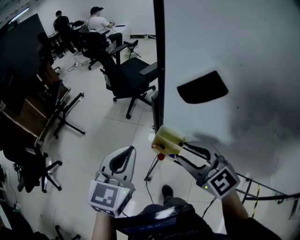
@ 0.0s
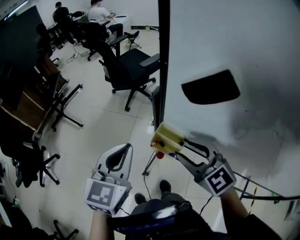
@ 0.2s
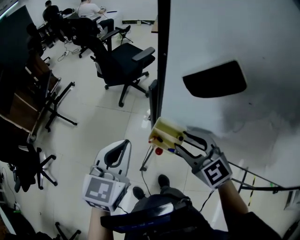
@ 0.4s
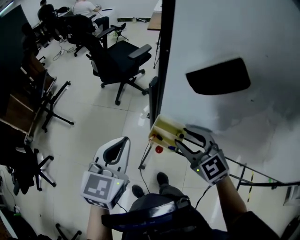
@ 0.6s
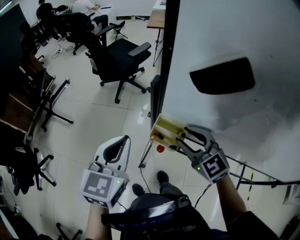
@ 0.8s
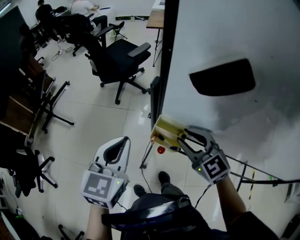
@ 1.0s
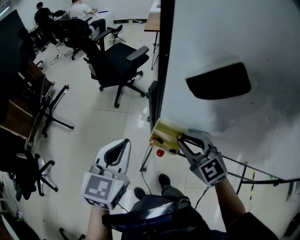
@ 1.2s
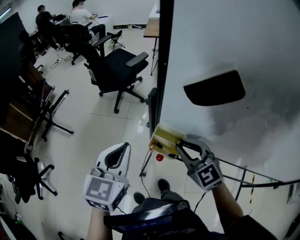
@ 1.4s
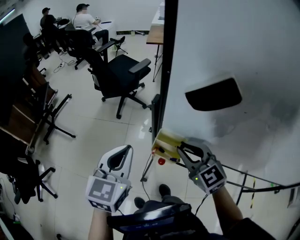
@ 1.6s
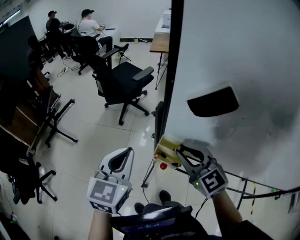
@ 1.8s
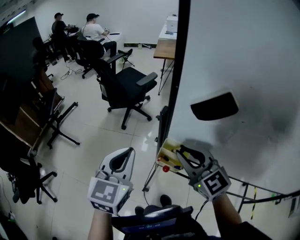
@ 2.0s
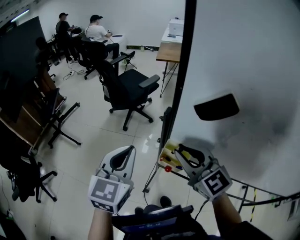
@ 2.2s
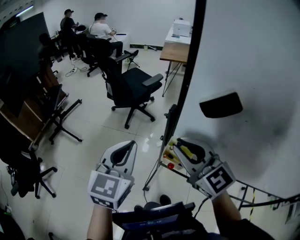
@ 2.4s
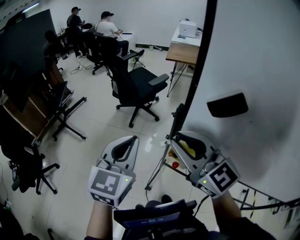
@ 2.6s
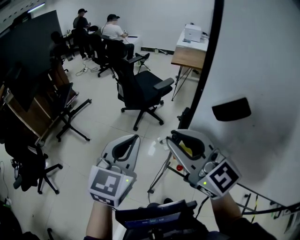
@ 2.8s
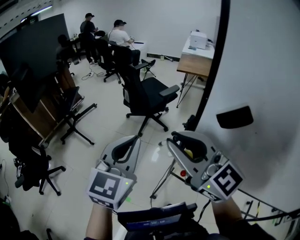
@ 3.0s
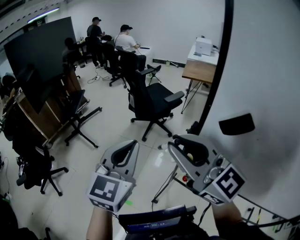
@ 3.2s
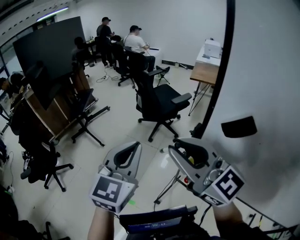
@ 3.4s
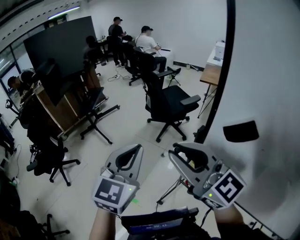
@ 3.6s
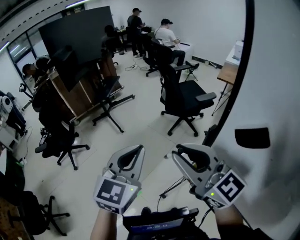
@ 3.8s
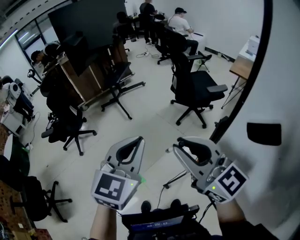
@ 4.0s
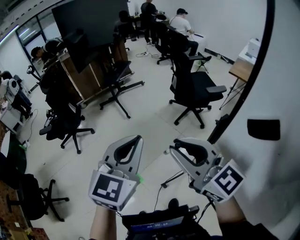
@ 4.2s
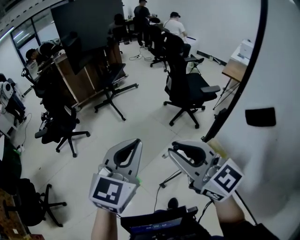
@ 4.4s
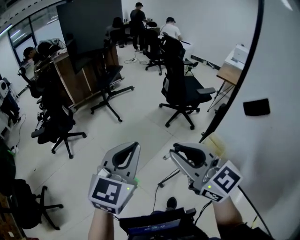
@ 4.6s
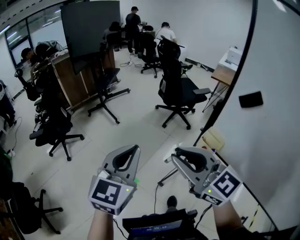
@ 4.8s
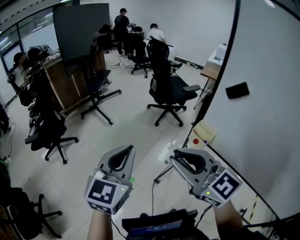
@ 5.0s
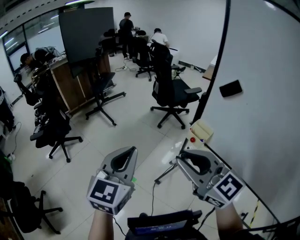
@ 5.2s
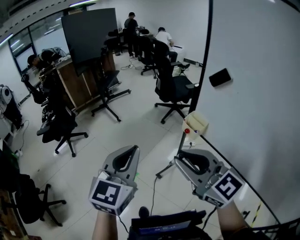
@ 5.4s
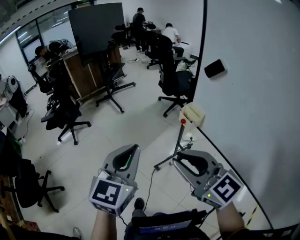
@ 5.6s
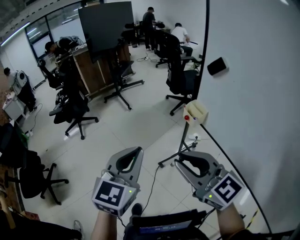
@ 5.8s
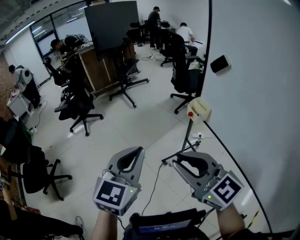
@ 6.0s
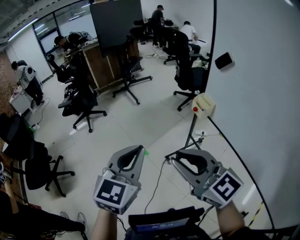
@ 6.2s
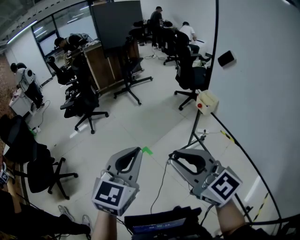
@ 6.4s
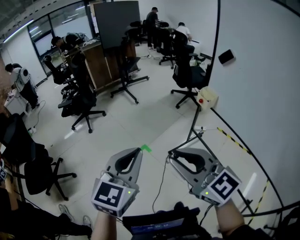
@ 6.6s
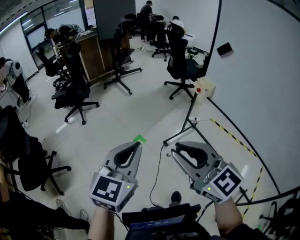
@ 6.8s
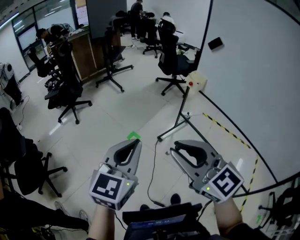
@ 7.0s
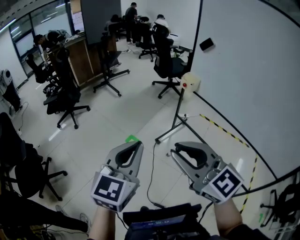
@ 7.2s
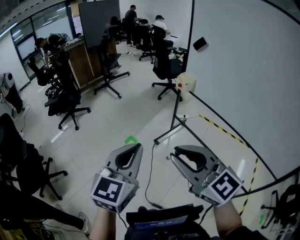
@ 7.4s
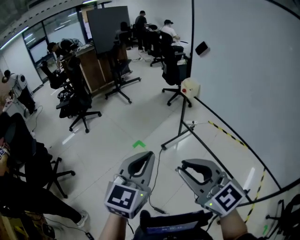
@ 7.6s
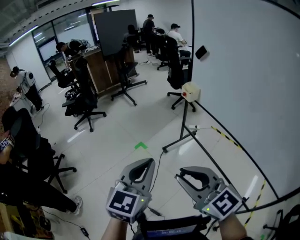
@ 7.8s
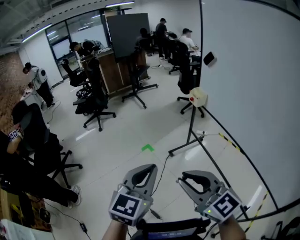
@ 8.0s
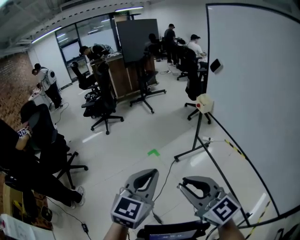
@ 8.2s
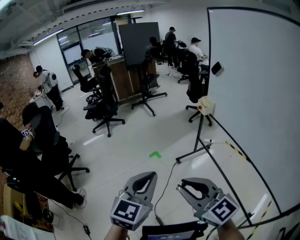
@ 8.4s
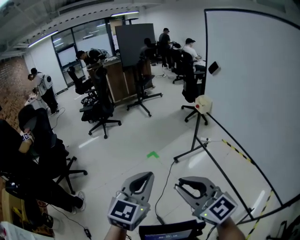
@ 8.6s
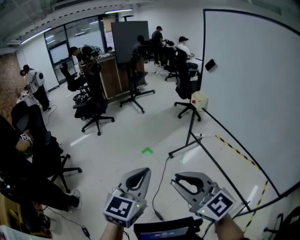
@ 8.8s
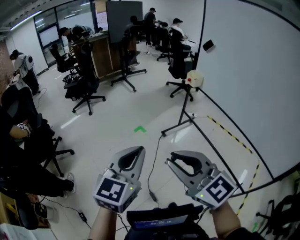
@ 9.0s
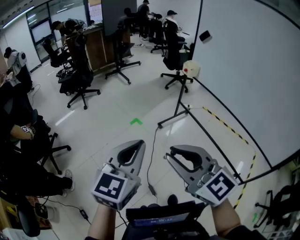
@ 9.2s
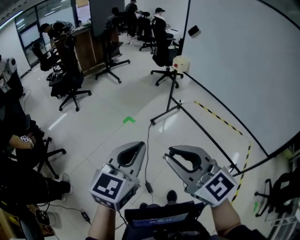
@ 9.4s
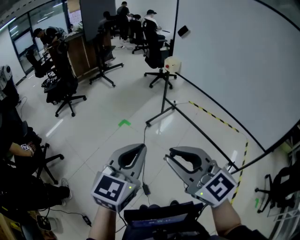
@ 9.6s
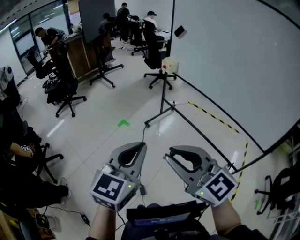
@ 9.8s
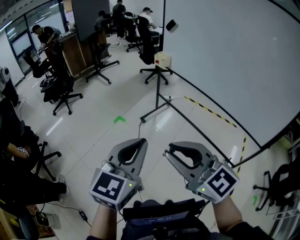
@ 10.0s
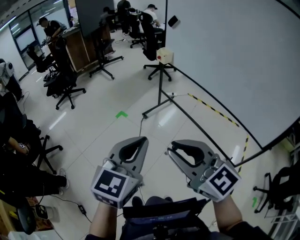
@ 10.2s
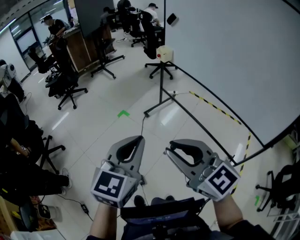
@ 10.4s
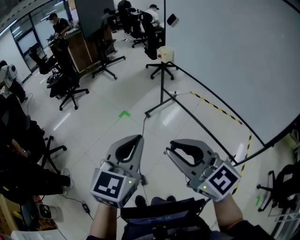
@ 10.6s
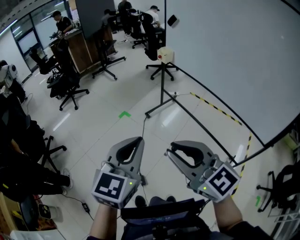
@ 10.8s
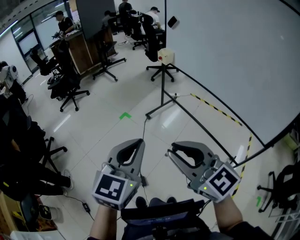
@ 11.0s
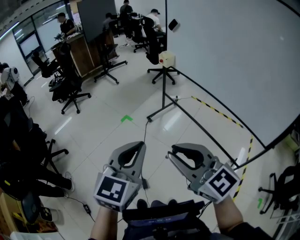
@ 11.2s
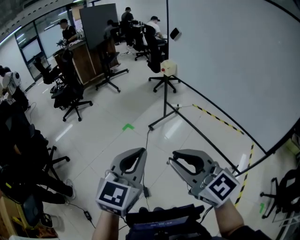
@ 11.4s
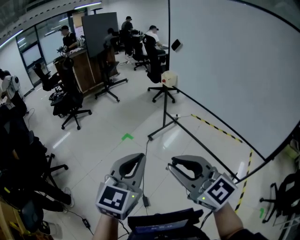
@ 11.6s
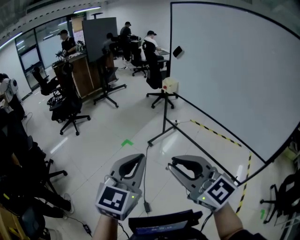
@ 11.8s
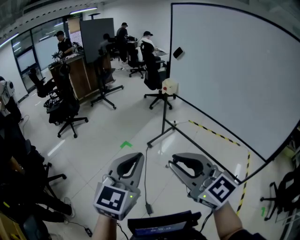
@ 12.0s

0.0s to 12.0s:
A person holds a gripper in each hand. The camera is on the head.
0.0s to 1.6s: The right gripper shifts approximately 10 cm downward and forward, and closes. The left gripper travels forward by approximately 5 cm.
1.6s to 3.0s: The left gripper shifts about 15 cm upward and to the left, while the right gripper heads upward and to the left, covering approximately 30 cm, and rotates approximately 30 degrees.
3.0s to 4.4s: The left gripper shifts by roughly 15 cm, and swivels approximately 20 degrees. Meanwhile the right gripper shifts by some 10 cm, and turns by some 30 degrees.
4.4s to 6.0s: The two grippers go roughly 40 cm backward.
6.0s to 7.6s: The right gripper travels backward and to the left by about 30 cm; the left gripper travels backward by about 25 cm.
7.6s to 9.0s: Both grippers move backward and to the left, approximately 15 cm.
9.0s to 10.4s: The two grippers go roughly 15 cm to the right and backward.
10.4s to 12.0s: Both grippers move to the left and forward, roughly 10 cm.

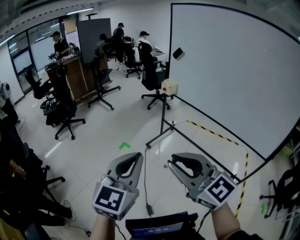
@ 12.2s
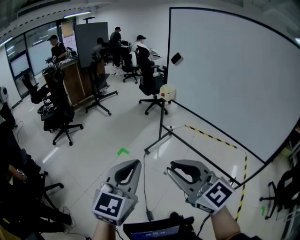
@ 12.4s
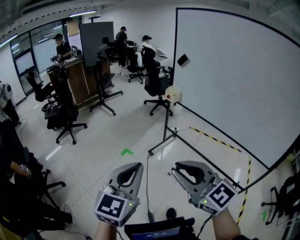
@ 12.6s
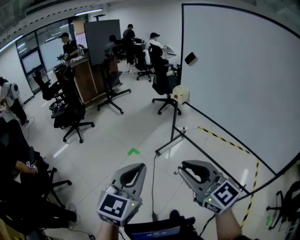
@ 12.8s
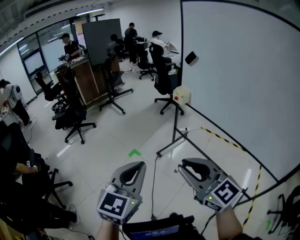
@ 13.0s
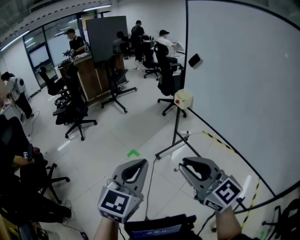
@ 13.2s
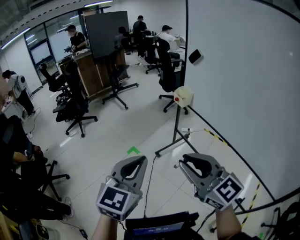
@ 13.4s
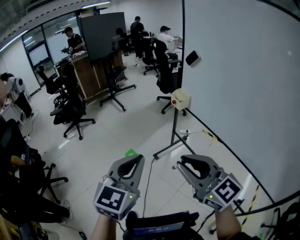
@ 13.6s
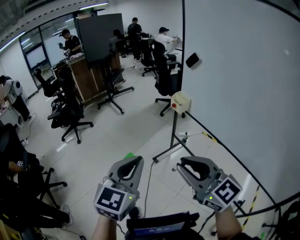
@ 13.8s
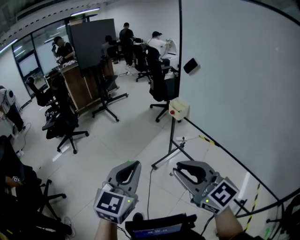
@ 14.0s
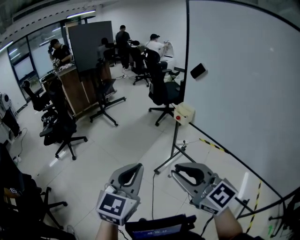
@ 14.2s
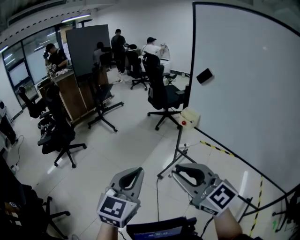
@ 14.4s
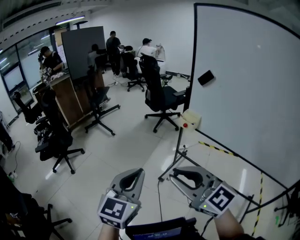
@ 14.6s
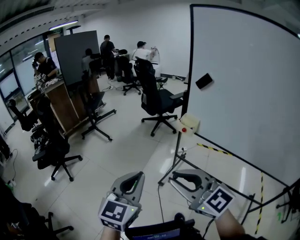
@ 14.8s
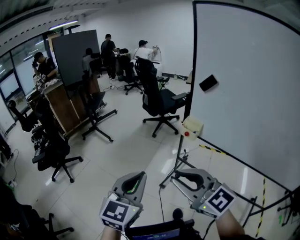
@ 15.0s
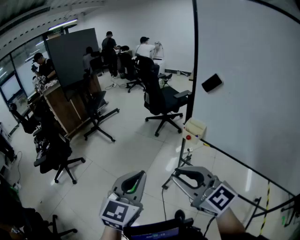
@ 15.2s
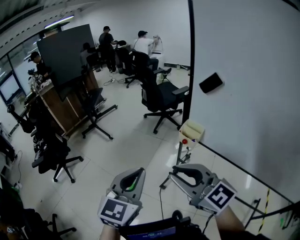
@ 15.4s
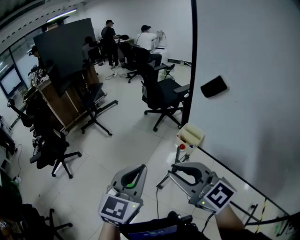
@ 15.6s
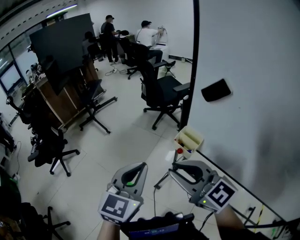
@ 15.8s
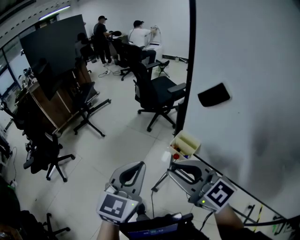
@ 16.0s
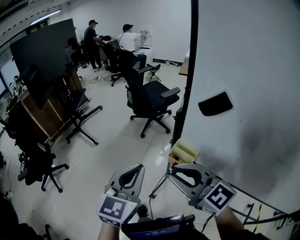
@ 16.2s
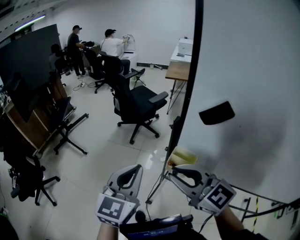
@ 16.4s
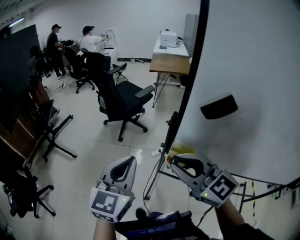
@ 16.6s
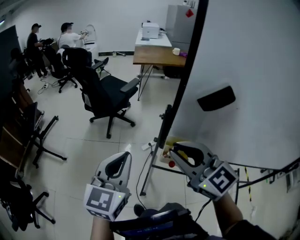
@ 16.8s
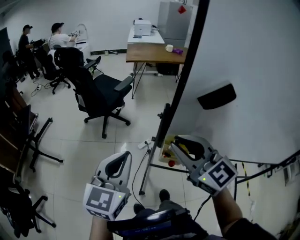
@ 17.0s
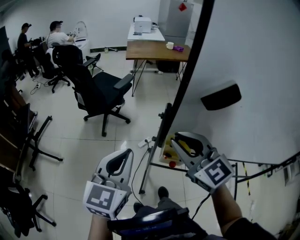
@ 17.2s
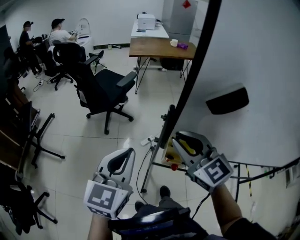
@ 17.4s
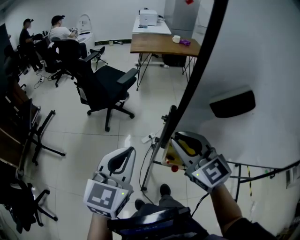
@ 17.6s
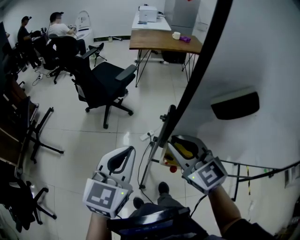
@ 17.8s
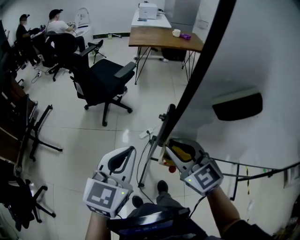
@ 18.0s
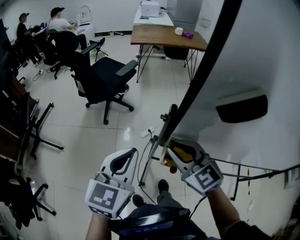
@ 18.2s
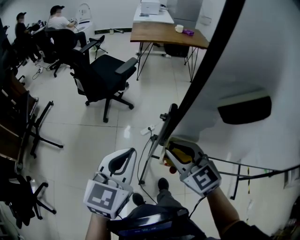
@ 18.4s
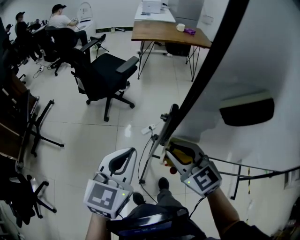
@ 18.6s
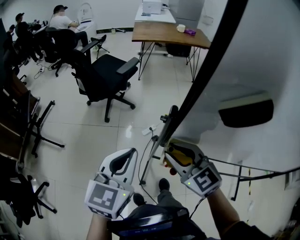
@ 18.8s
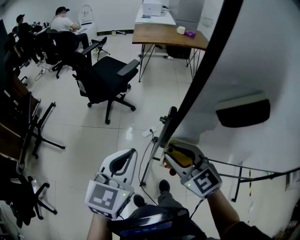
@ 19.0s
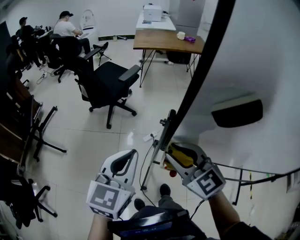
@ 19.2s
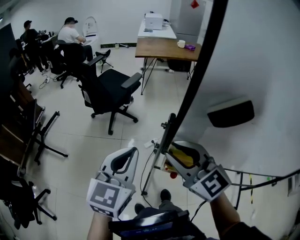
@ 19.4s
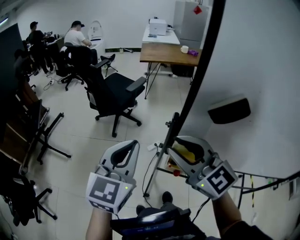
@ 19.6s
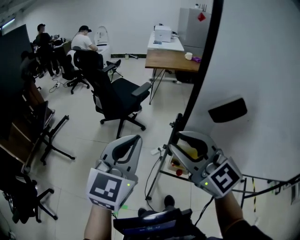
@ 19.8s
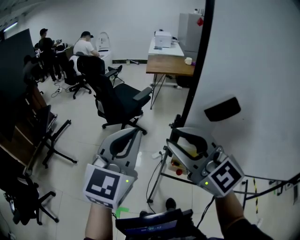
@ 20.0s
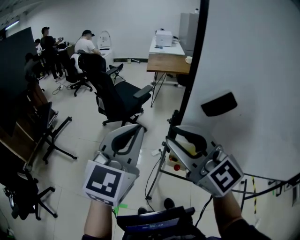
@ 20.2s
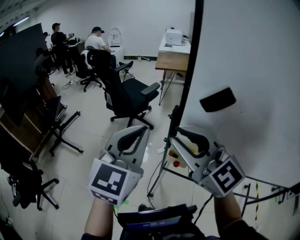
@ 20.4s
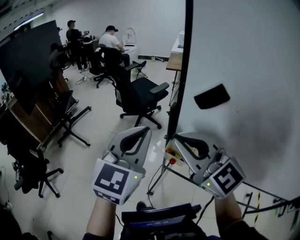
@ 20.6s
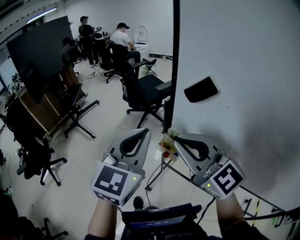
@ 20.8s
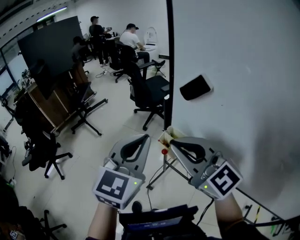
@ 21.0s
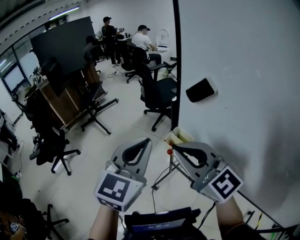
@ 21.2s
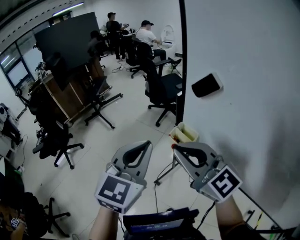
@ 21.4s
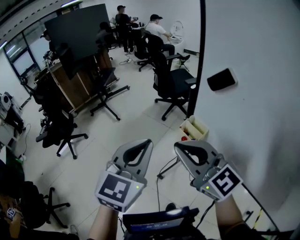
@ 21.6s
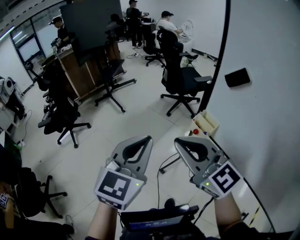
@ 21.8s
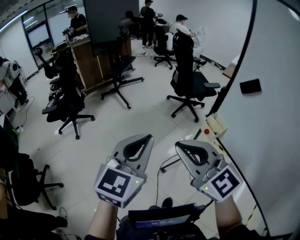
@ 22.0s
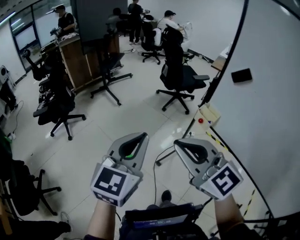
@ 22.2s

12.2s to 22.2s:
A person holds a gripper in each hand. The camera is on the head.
12.2s to 13.6s: The two grippers go roughly 25 cm forward and to the right.
13.6s to 15.0s: The two grippers go about 30 cm forward and to the left.
15.0s to 16.4s: The grippers both shift forward and to the right by roughly 35 cm.
16.4s to 18.0s: Both grippers travel together forward and downward, some 15 cm. The right gripper rotates roughly 30 degrees.
18.0s to 19.4s: The right gripper goes approximately 5 cm upward.
19.4s to 20.8s: The right gripper heads backward and upward, covering some 20 cm, changes its angle by about 30 degrees, and closes. The left gripper shifts approximately 20 cm backward, upward and to the right, and turns by approximately 20 degrees.
20.8s to 22.2s: Both grippers travel together to the left and backward, approximately 30 cm. The left gripper swivels roughly 20 degrees.

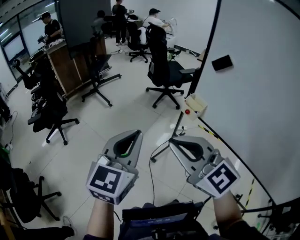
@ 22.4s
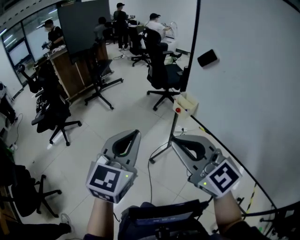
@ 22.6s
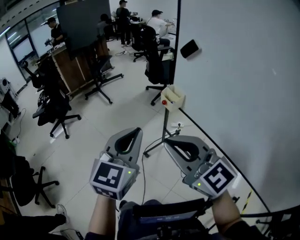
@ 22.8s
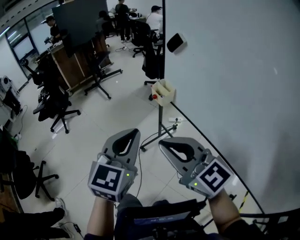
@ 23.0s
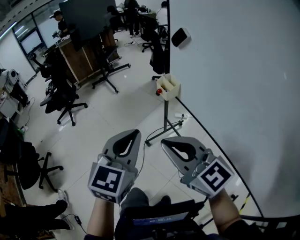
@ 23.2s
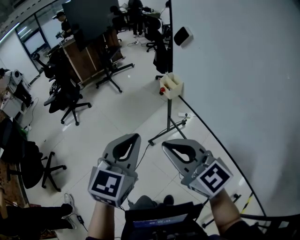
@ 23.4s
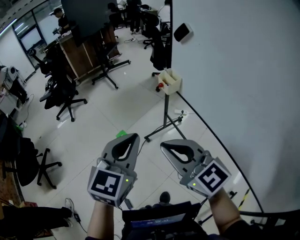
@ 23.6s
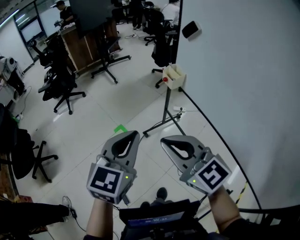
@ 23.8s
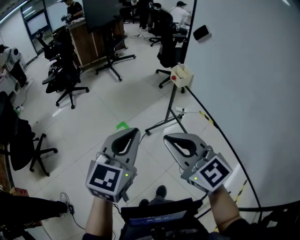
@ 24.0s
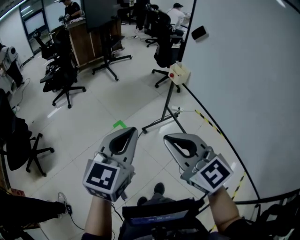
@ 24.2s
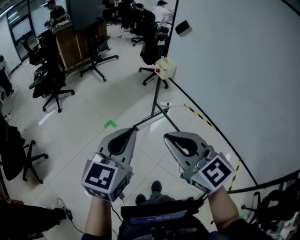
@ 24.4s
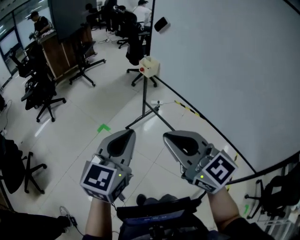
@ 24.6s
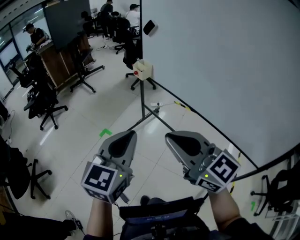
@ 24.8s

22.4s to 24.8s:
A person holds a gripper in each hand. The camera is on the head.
22.4s to 23.6s: Both grippers move backward and to the right, roughly 25 cm.
23.6s to 24.8s: Both grippers travel together backward, some 20 cm.
